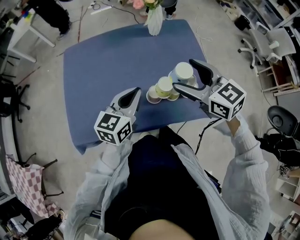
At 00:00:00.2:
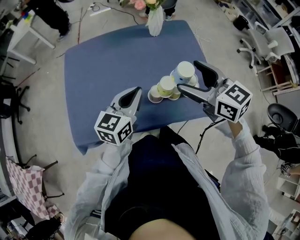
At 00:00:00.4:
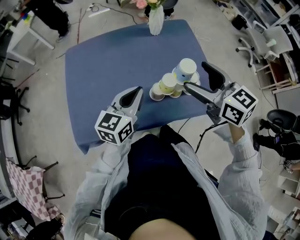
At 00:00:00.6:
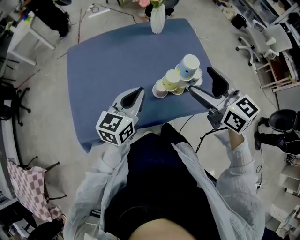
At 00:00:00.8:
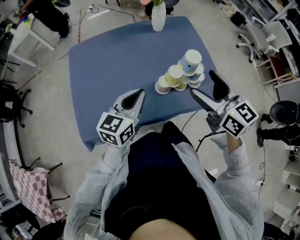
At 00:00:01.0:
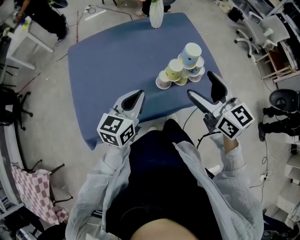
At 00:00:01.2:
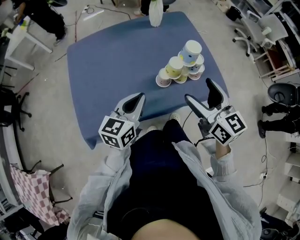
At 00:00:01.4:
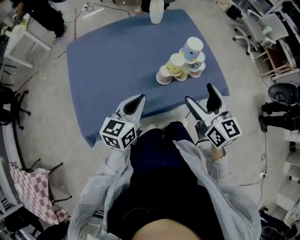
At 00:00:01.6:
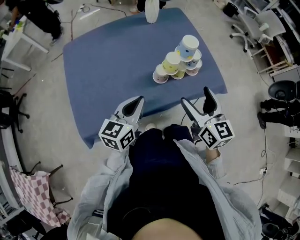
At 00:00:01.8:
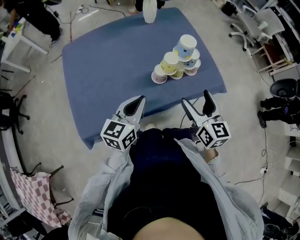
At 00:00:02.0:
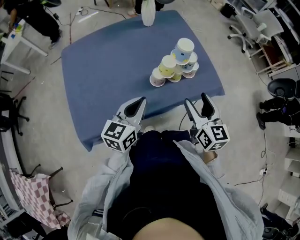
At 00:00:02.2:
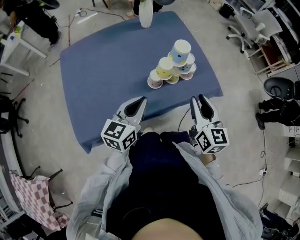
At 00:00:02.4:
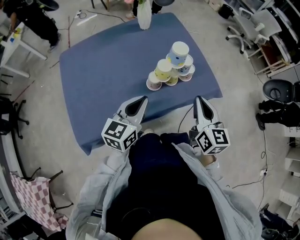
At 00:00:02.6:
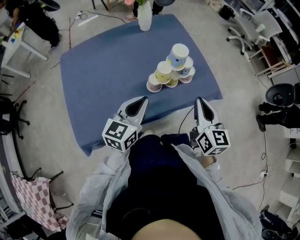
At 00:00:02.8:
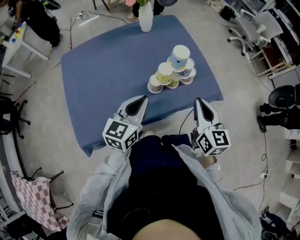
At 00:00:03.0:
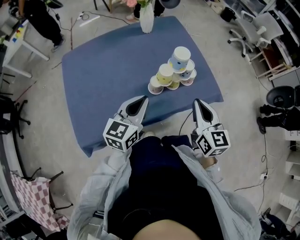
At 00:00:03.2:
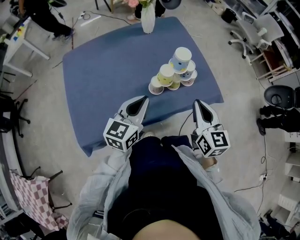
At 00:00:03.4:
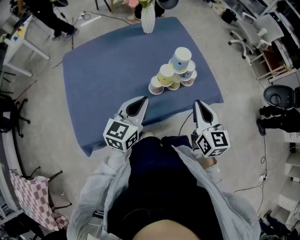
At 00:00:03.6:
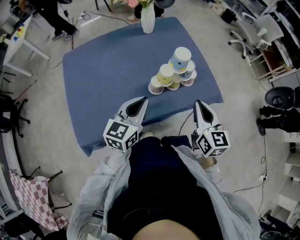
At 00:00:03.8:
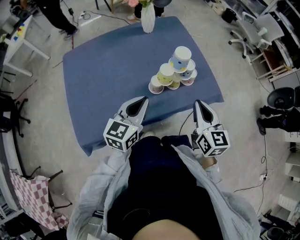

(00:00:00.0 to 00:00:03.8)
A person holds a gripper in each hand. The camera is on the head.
00:00:00.0 - 00:00:01.2: Both grippers move backward, about 10 cm. The right gripper rotates approximately 30 degrees.
00:00:01.2 - 00:00:02.6: The right gripper travels to the right and downward by roughly 10 cm, turns by approximately 20 degrees, and closes its fingers. Meanwhile the left gripper goes about 5 cm to the right.
00:00:02.6 - 00:00:03.8: The grippers move only a little.

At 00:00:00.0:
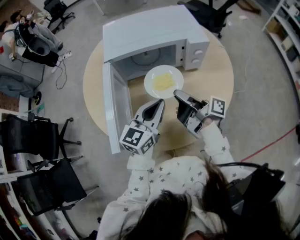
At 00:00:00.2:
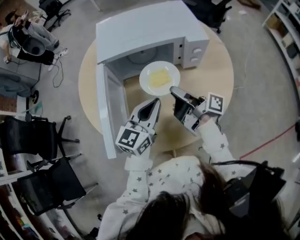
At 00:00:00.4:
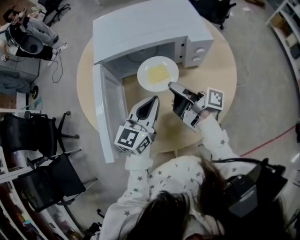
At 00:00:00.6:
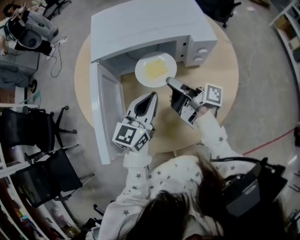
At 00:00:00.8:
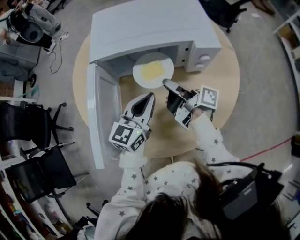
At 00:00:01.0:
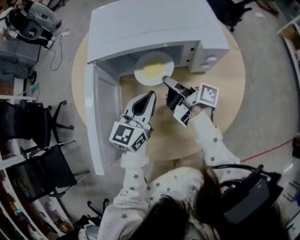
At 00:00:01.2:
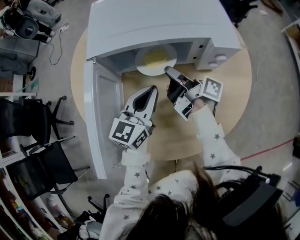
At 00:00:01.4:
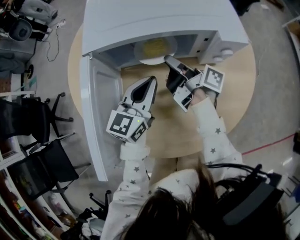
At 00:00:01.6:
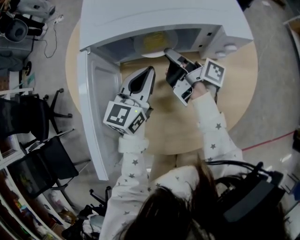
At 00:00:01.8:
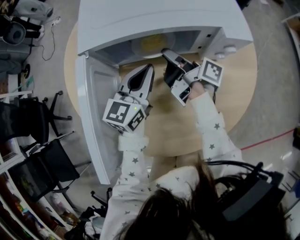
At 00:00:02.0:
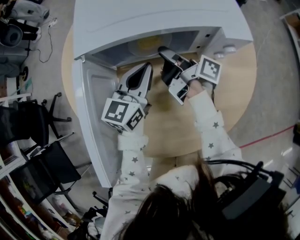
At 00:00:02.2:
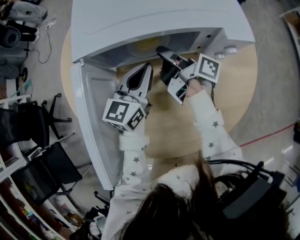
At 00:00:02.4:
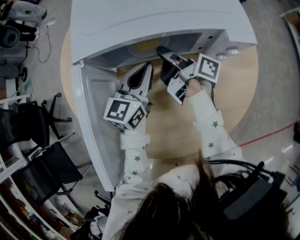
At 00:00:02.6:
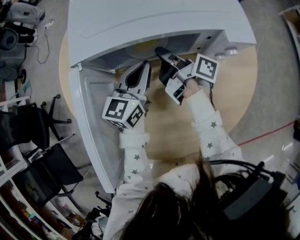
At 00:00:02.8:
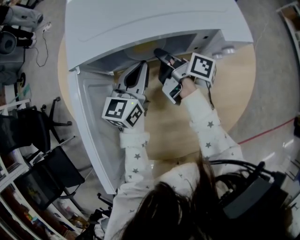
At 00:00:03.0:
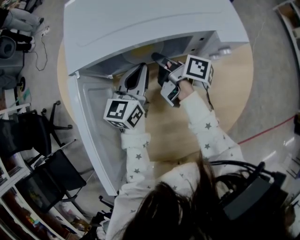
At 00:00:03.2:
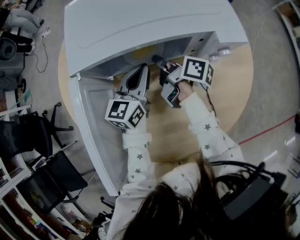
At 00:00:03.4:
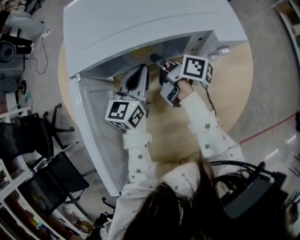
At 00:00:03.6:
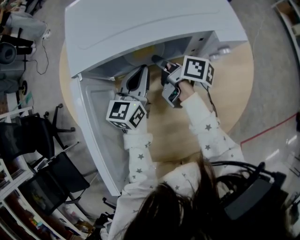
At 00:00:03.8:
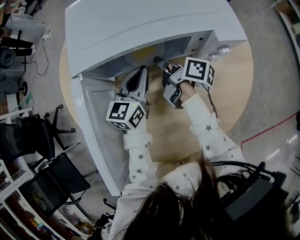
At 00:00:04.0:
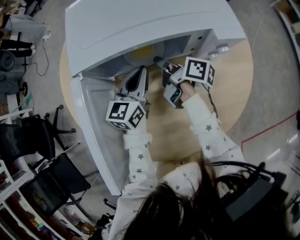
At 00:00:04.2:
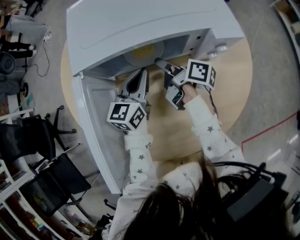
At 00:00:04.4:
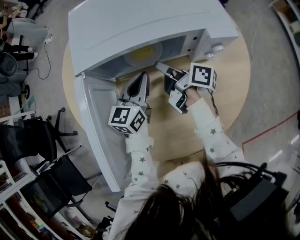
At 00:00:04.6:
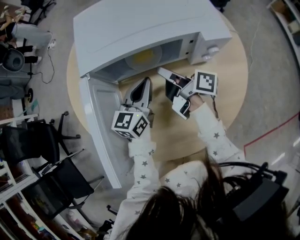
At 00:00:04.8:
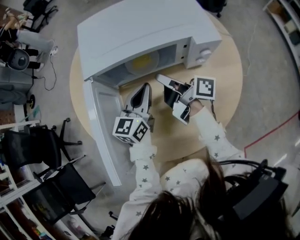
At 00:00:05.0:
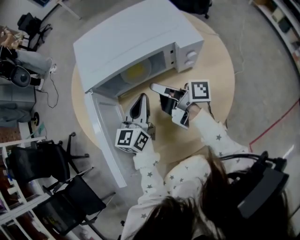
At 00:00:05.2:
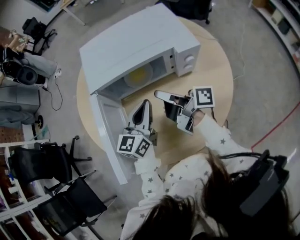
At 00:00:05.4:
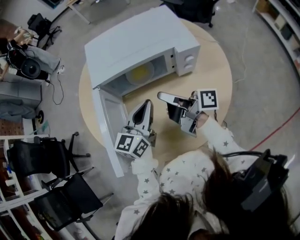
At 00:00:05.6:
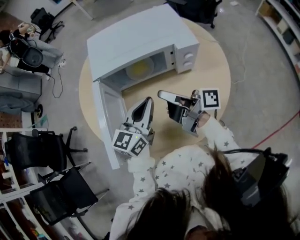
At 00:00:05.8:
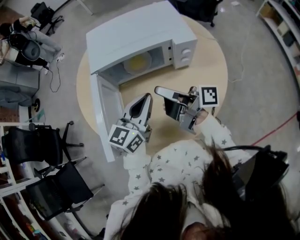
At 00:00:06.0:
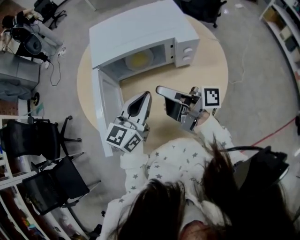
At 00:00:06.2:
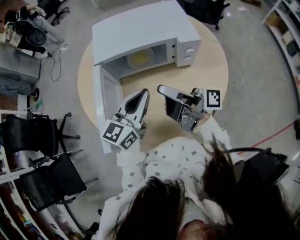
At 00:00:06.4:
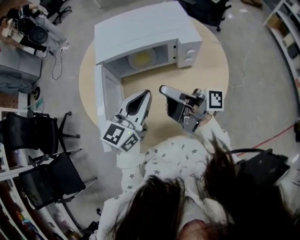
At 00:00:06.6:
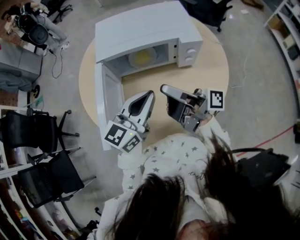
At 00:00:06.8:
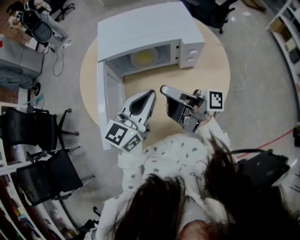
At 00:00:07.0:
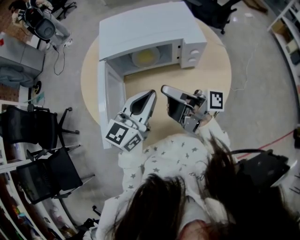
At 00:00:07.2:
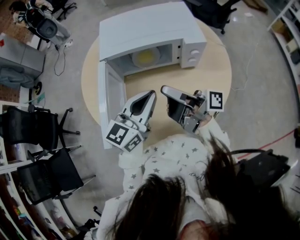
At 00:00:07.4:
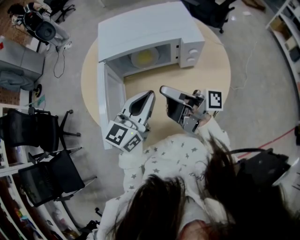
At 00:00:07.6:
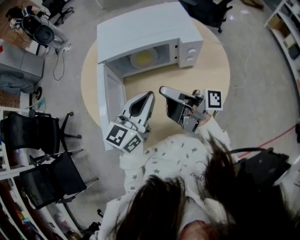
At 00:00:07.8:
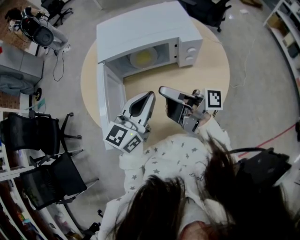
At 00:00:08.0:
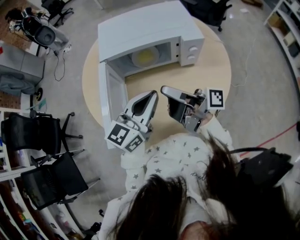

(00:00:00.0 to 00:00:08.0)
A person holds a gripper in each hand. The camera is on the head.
00:00:00.0 - 00:00:01.6: The left gripper moves roughly 20 cm.
00:00:01.6 - 00:00:03.2: The left gripper ends up approximately 5 cm from where it was.
00:00:04.8 - 00:00:06.4: The left gripper is displaced upward by approximately 20 cm.

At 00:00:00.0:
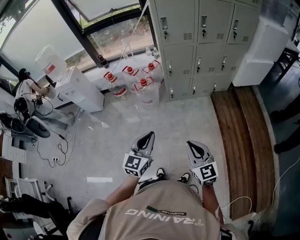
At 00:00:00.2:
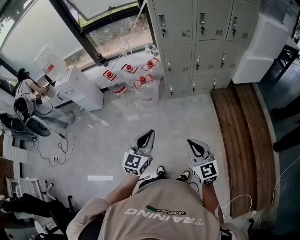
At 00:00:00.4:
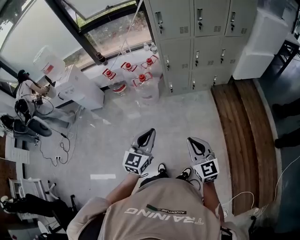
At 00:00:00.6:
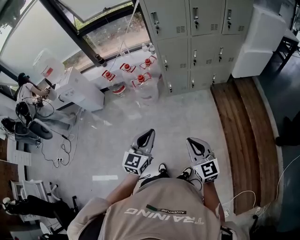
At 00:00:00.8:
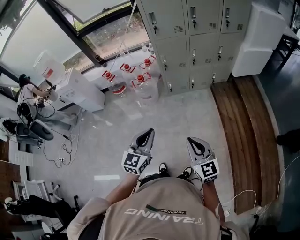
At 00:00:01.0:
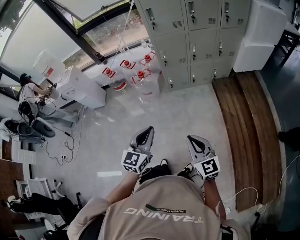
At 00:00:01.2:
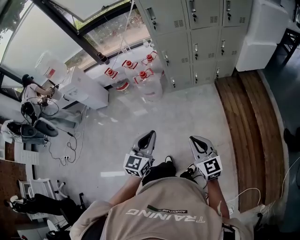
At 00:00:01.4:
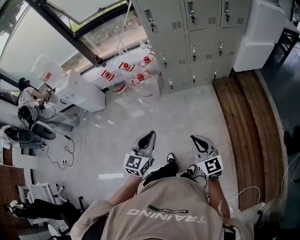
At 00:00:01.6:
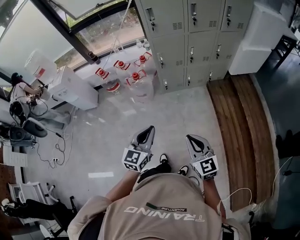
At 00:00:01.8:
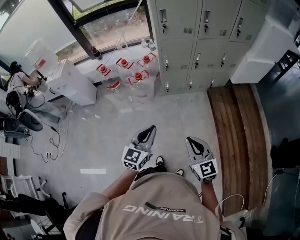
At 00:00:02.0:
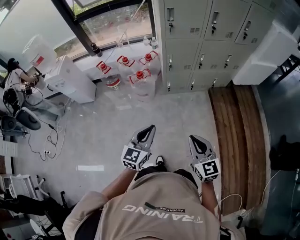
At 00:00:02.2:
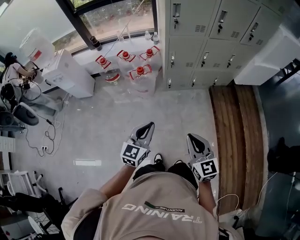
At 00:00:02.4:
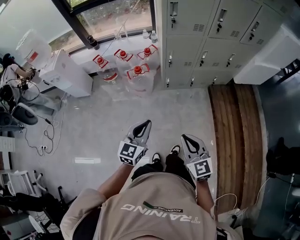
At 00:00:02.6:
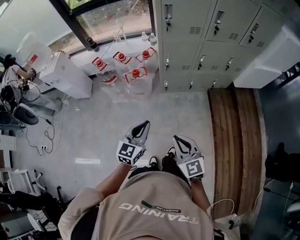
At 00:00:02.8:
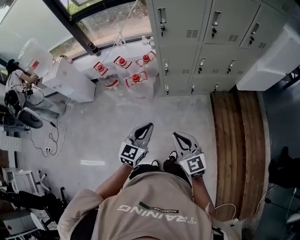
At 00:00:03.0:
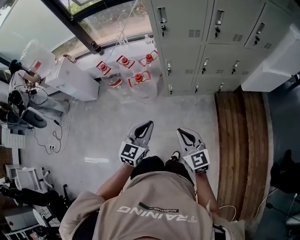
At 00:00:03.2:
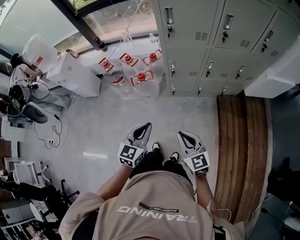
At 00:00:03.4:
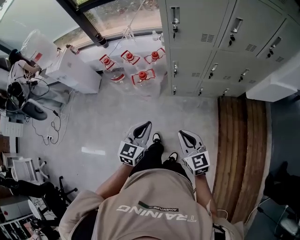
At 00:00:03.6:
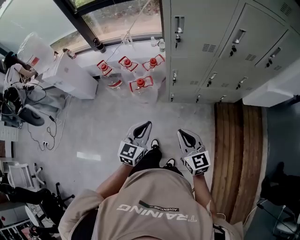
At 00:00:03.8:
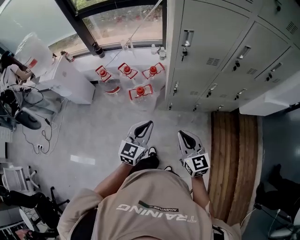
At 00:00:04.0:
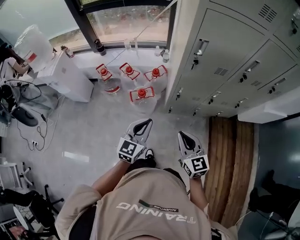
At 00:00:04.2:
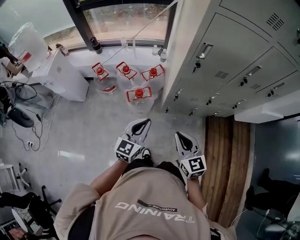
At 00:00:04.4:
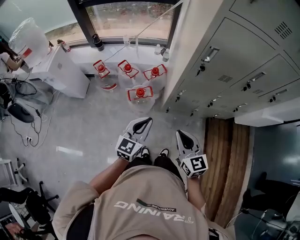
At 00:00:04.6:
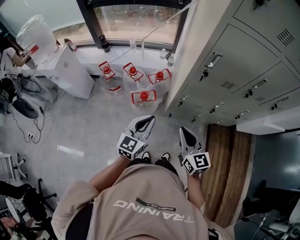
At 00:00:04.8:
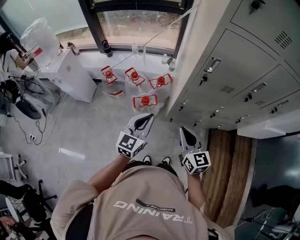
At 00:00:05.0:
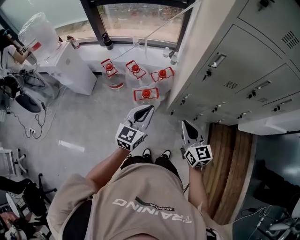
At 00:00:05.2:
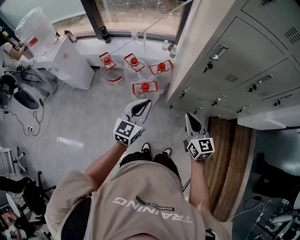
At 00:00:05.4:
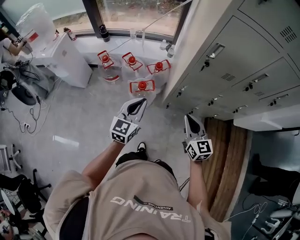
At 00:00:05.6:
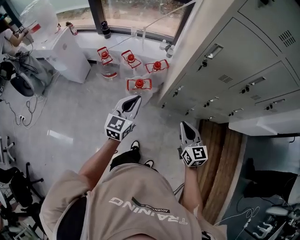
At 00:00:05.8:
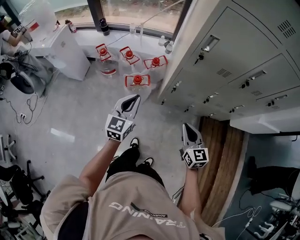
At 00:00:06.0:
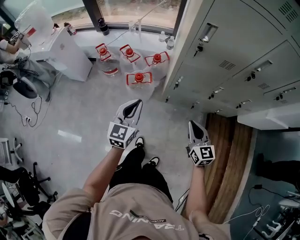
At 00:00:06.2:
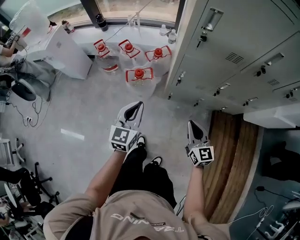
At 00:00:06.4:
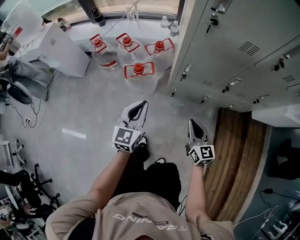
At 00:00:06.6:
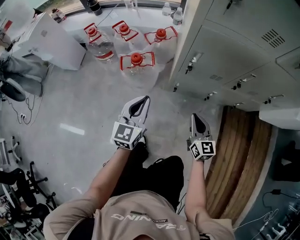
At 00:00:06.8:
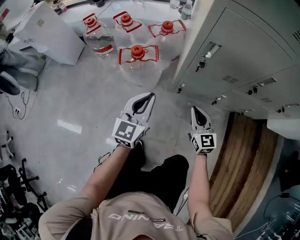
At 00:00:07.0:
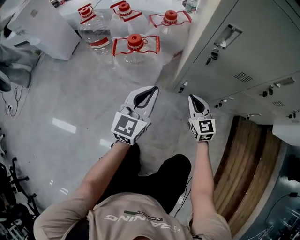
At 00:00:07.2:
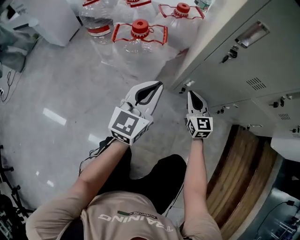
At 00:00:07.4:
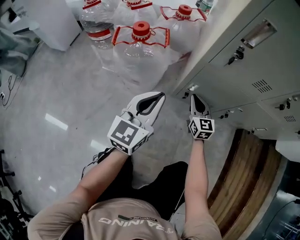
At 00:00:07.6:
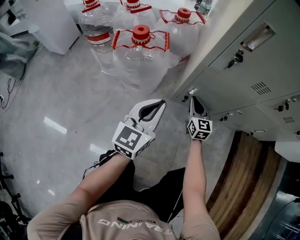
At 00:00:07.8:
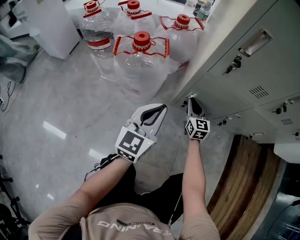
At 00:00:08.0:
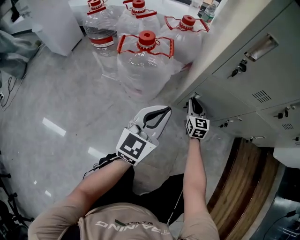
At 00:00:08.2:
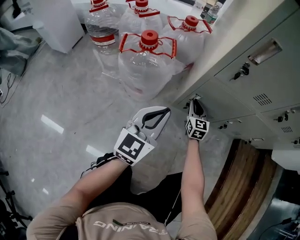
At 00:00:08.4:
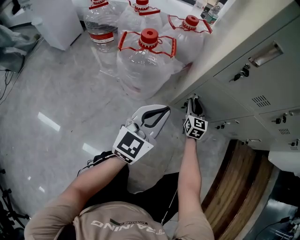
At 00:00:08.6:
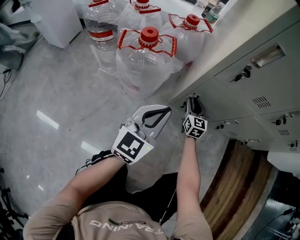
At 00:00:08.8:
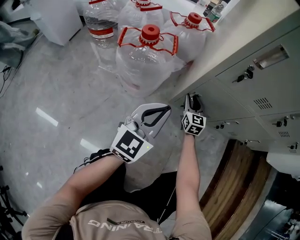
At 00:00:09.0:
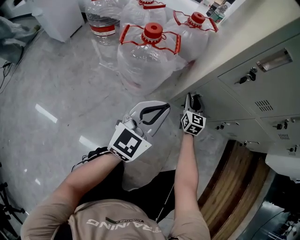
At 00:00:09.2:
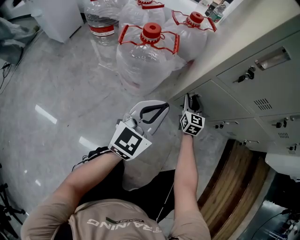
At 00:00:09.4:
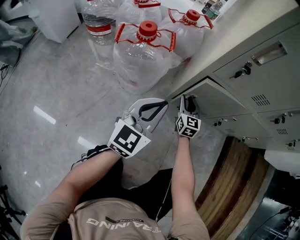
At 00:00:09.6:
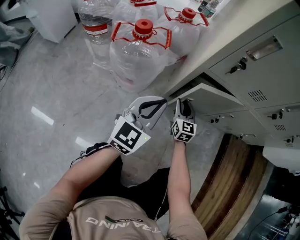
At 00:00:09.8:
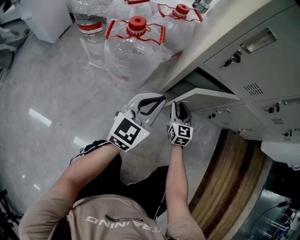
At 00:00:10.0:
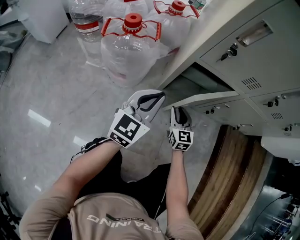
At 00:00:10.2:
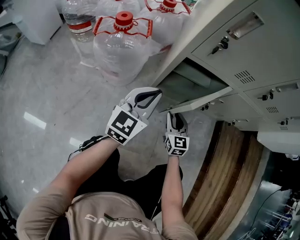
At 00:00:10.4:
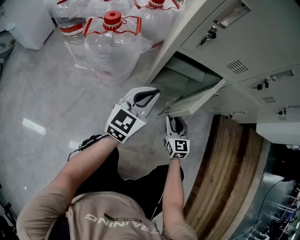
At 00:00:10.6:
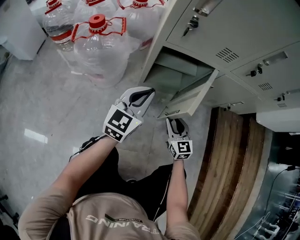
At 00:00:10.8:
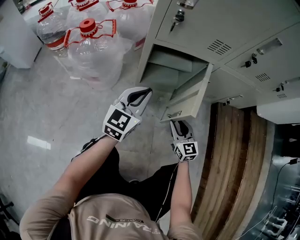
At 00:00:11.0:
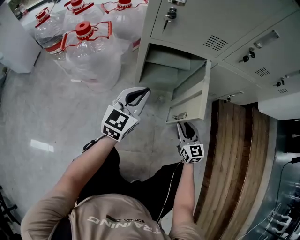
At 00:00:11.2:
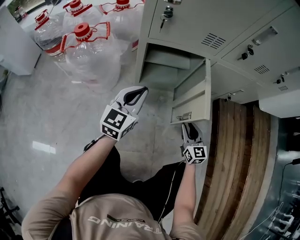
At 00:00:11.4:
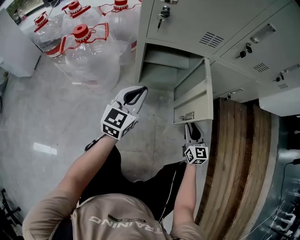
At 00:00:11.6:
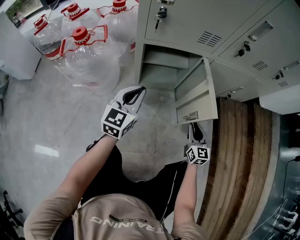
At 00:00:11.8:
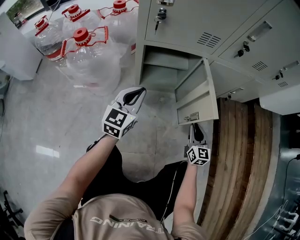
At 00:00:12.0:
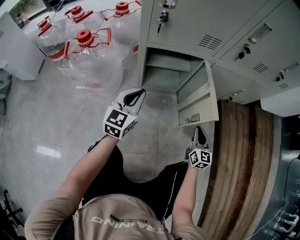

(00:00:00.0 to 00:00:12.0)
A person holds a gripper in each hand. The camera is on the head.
00:00:00.0 - 00:00:01.6: The right gripper shifts by approximately 5 cm. The left gripper moves some 5 cm.
00:00:01.6 - 00:00:03.0: The two grippers go approximately 20 cm forward.
00:00:03.0 - 00:00:04.4: The grippers both shift forward and to the left by roughly 25 cm.
00:00:04.4 - 00:00:06.0: The right gripper moves to the right and downward, about 15 cm.
00:00:06.0 - 00:00:07.6: The right gripper heads downward and forward, covering some 70 cm. The left gripper goes some 50 cm downward.
00:00:07.6 - 00:00:09.0: The right gripper moves approximately 5 cm.
00:00:09.0 - 00:00:10.4: The right gripper moves backward and to the right, about 20 cm. The left gripper travels to the right by some 10 cm.
00:00:10.4 - 00:00:12.0: The left gripper moves approximately 5 cm; the right gripper moves to the right, roughly 20 cm, and turns by some 30 degrees.
